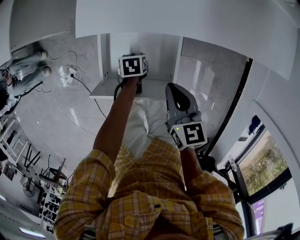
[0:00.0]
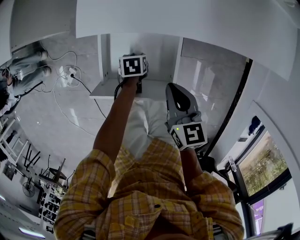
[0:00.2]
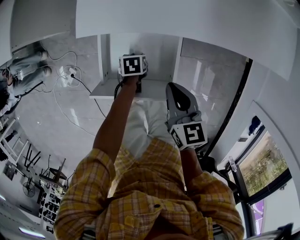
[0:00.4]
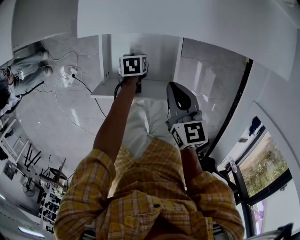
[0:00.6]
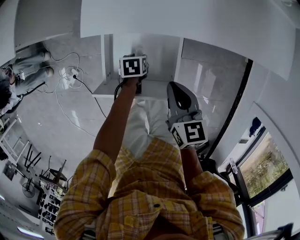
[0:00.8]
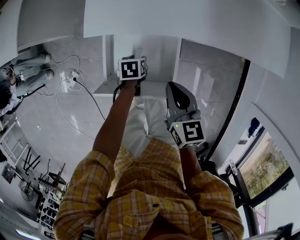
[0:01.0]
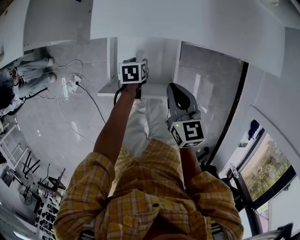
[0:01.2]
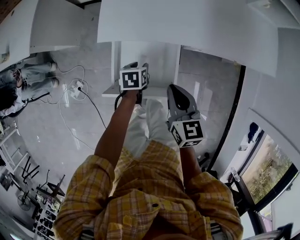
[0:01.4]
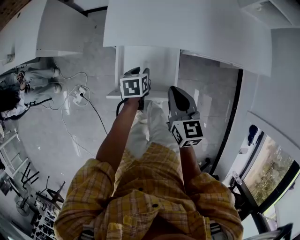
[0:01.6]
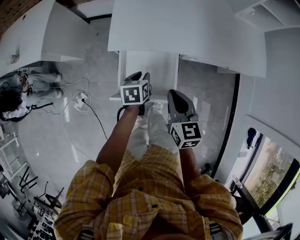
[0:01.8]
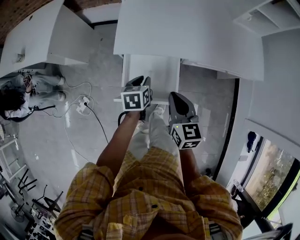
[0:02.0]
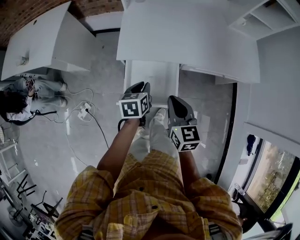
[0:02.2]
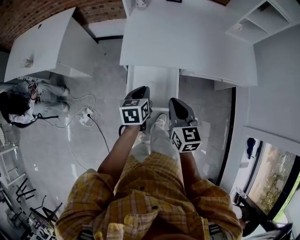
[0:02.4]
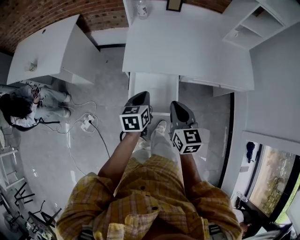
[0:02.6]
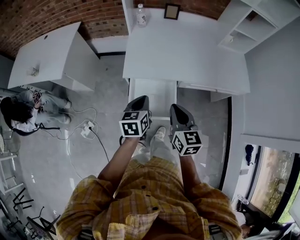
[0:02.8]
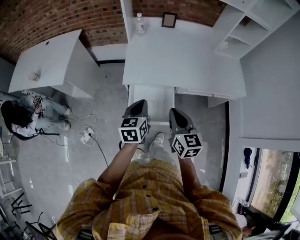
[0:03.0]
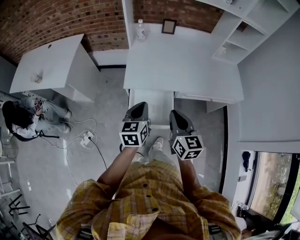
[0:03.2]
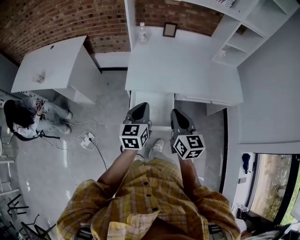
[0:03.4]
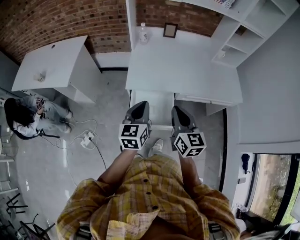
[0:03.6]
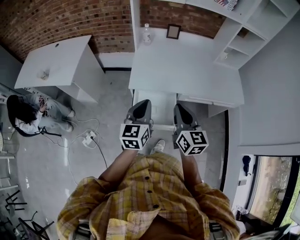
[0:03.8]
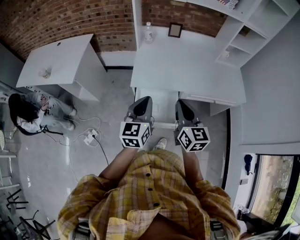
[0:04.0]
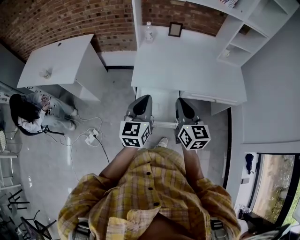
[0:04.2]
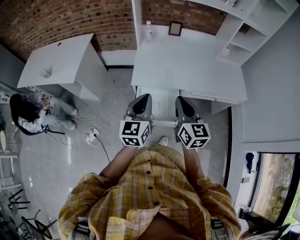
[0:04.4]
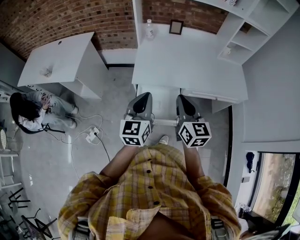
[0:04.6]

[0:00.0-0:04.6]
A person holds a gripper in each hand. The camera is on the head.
0:00.0 to 0:01.6: The left gripper heads upward, covering some 20 cm. Meanwhile the right gripper is displaced upward by some 10 cm.
0:01.6 to 0:03.0: The left gripper goes roughly 25 cm upward, changes its angle by about 30 degrees, and closes up. Meanwhile the right gripper is displaced upward by some 15 cm.
0:03.0 to 0:04.6: The two grippers go about 10 cm upward. The left gripper swivels some 20 degrees.

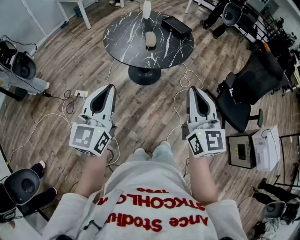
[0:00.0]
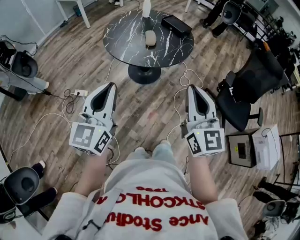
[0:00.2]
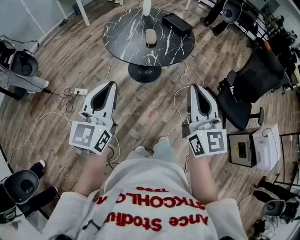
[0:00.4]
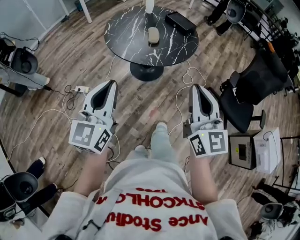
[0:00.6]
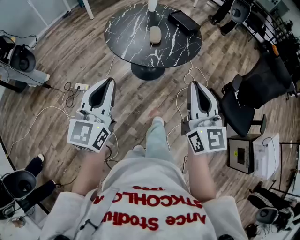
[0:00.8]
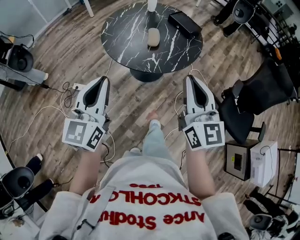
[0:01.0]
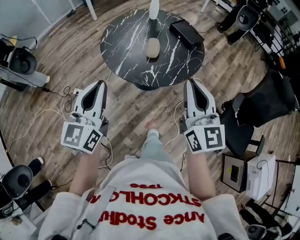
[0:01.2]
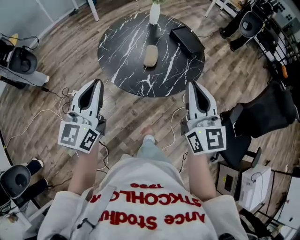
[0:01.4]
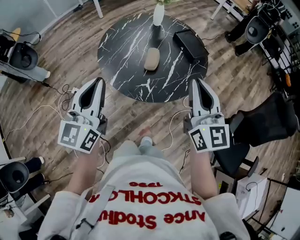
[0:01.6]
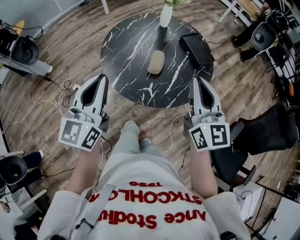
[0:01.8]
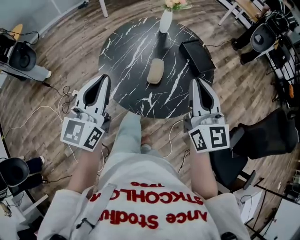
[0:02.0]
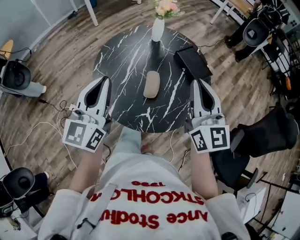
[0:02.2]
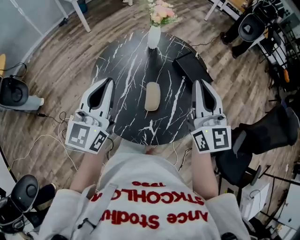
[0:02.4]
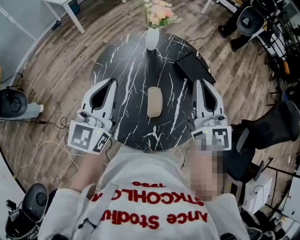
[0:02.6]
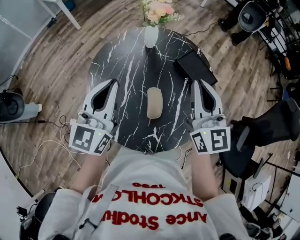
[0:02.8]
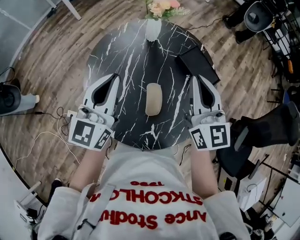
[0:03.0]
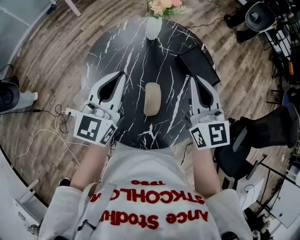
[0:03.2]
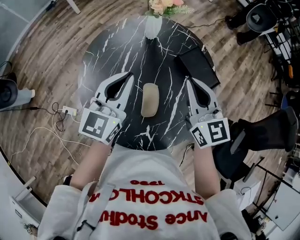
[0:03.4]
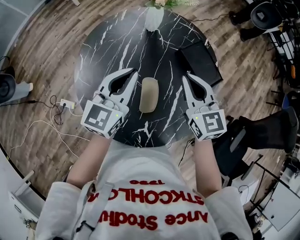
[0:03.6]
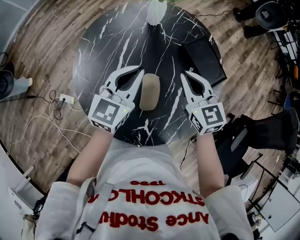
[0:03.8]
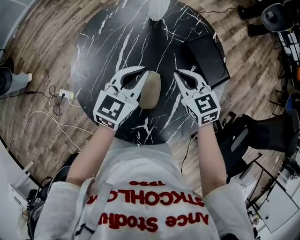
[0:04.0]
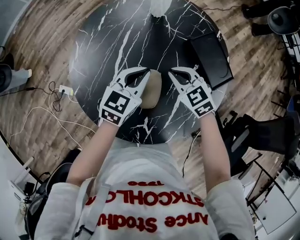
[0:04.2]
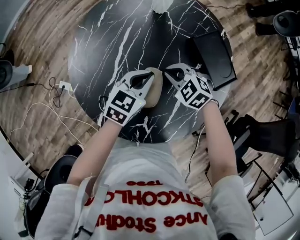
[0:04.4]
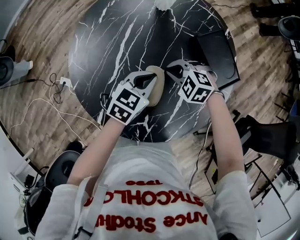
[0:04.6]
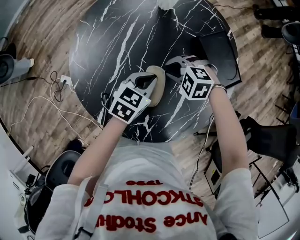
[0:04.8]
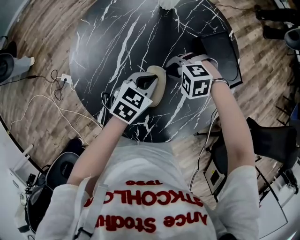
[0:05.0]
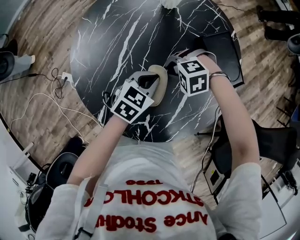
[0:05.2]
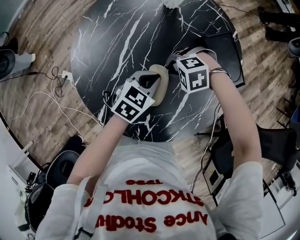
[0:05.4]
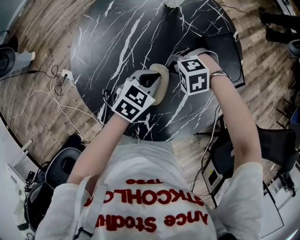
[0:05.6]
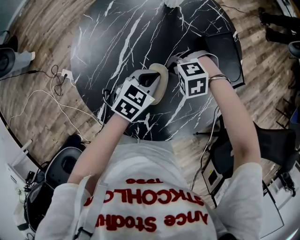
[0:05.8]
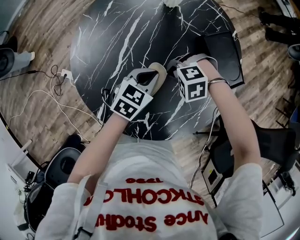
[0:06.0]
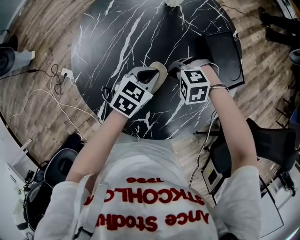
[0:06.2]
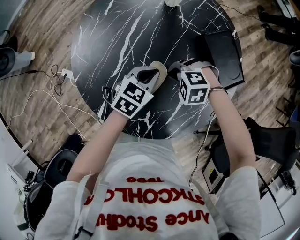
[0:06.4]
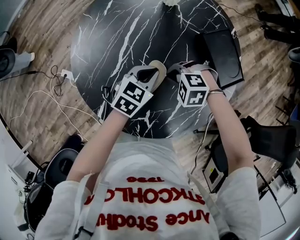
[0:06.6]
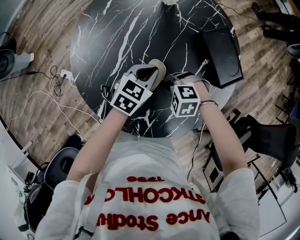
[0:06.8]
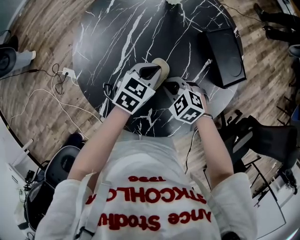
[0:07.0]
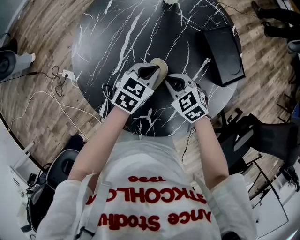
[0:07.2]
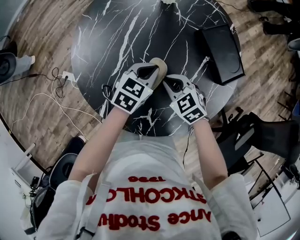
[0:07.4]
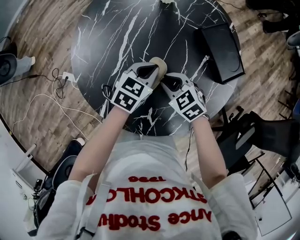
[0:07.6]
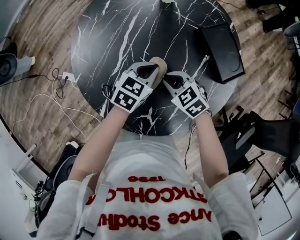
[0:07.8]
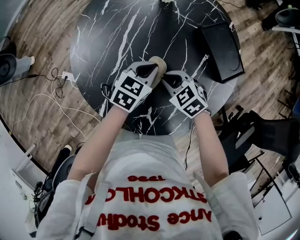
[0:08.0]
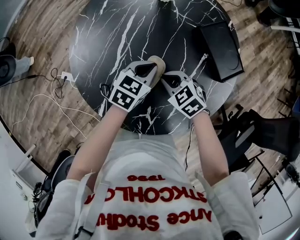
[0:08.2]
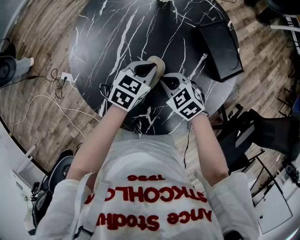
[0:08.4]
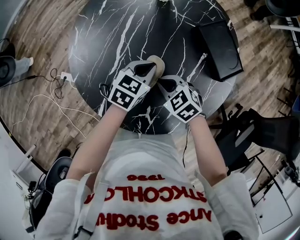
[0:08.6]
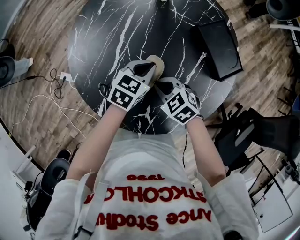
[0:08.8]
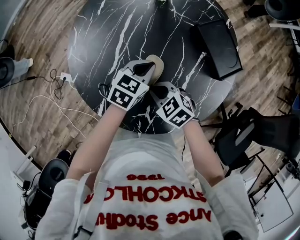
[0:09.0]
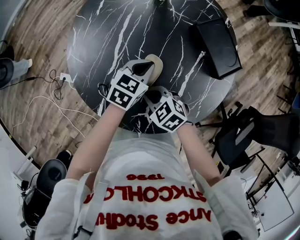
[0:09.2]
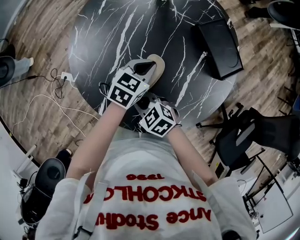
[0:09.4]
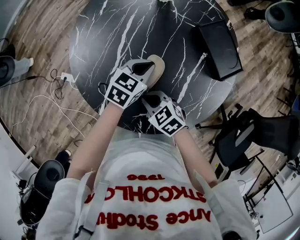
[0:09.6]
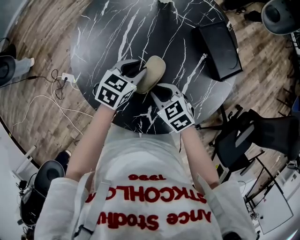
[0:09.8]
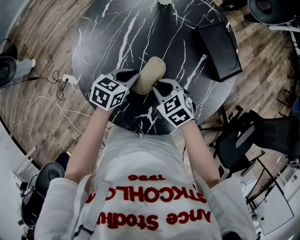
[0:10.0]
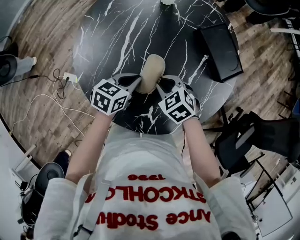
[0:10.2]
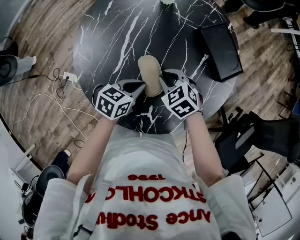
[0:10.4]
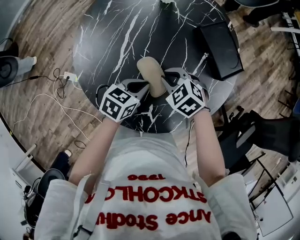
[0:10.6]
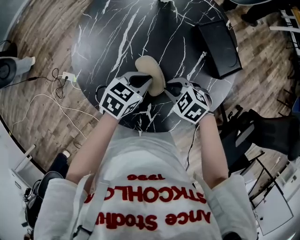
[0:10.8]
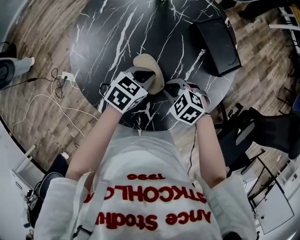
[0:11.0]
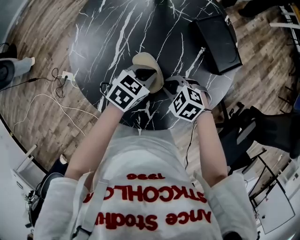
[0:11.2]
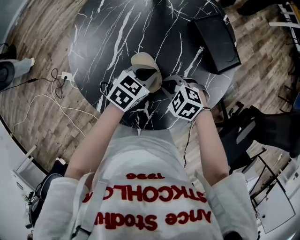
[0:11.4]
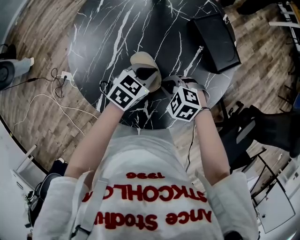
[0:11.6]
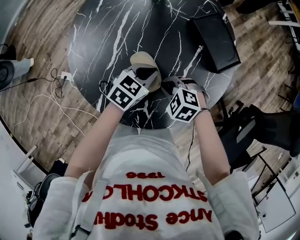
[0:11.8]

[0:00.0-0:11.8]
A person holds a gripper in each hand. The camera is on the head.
0:00.0 to 0:01.4: Both grippers travel together forward, roughly 25 cm.
0:01.4 to 0:03.0: The two grippers go about 40 cm forward.
0:03.0 to 0:04.4: The right gripper goes roughly 35 cm downward, and angles its fingers downward, by about 50 degrees. Meanwhile the left gripper shifts approximately 30 cm downward and to the right, and swivels some 30 degrees.
0:04.4 to 0:06.0: The right gripper swivels about 50 degrees.
0:06.0 to 0:07.4: The right gripper twists some 50 degrees clockwise, seen from behind.
0:07.4 to 0:08.8: The grippers make only small movements.
0:08.8 to 0:10.4: The left gripper ends up approximately 10 cm from where it was, and opens and closes again.
0:10.4 to 0:11.8: The left gripper shifts by some 10 cm. The right gripper shifts by some 10 cm, and rotates approximately 20 degrees.

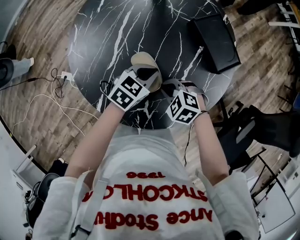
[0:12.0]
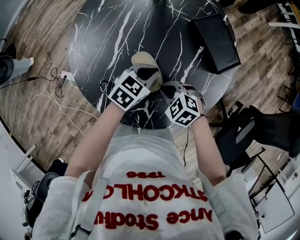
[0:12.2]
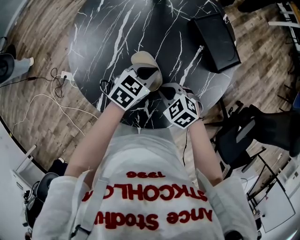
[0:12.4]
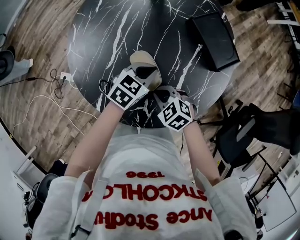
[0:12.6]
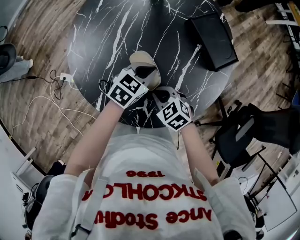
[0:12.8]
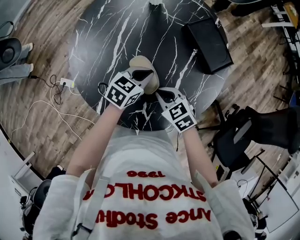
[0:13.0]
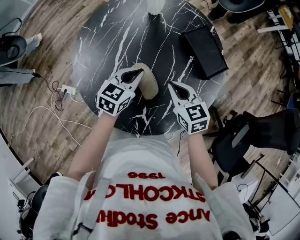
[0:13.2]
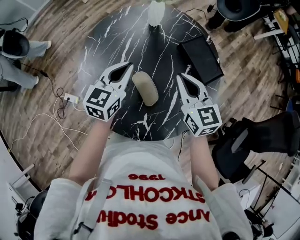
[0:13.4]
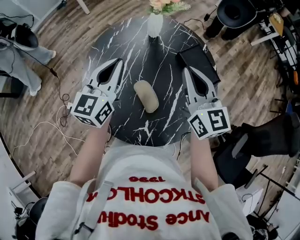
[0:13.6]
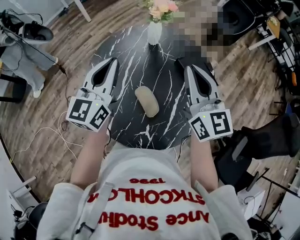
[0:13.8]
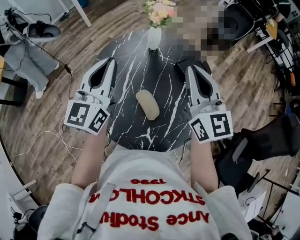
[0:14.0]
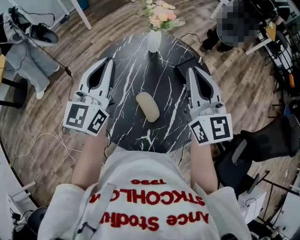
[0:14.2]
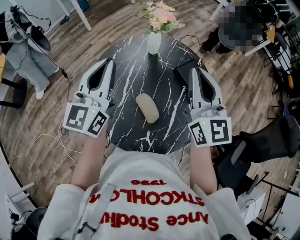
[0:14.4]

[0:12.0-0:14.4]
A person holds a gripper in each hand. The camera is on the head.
0:12.0 to 0:13.2: The left gripper moves upward, some 5 cm. Meanwhile the right gripper moves upward, about 10 cm, and swivels about 50 degrees.
0:13.2 to 0:14.4: The two grippers go roughly 30 cm upward. The right gripper angles its fingers upward, by roughly 40 degrees, while the left gripper points its fingers about 40 degrees further upward.

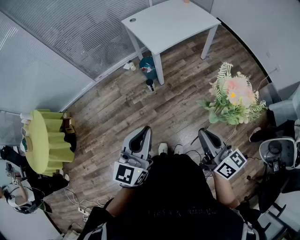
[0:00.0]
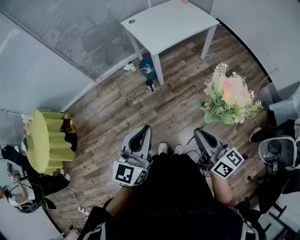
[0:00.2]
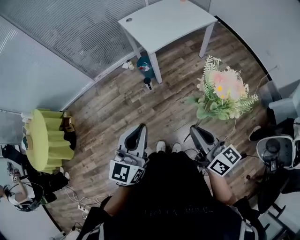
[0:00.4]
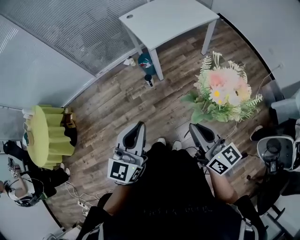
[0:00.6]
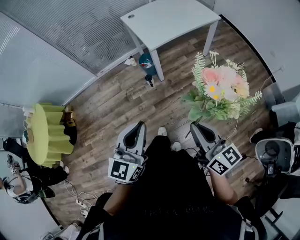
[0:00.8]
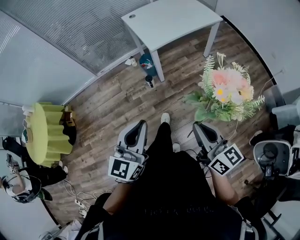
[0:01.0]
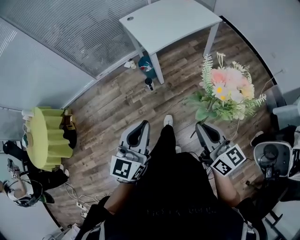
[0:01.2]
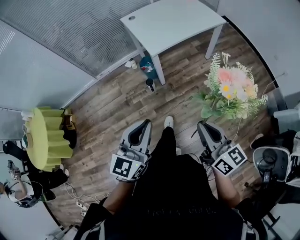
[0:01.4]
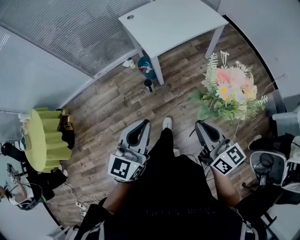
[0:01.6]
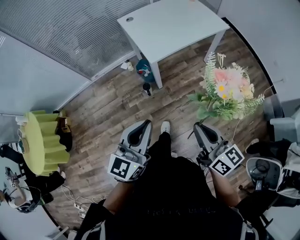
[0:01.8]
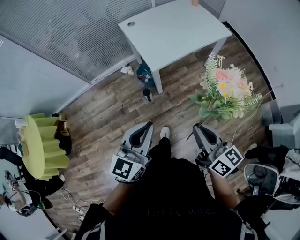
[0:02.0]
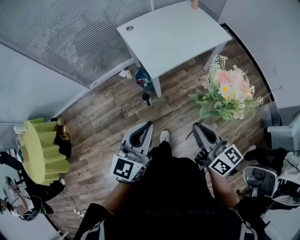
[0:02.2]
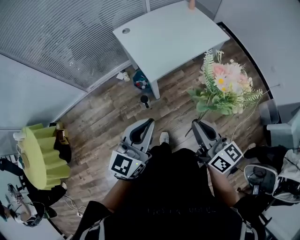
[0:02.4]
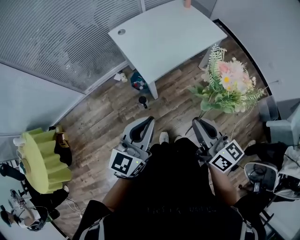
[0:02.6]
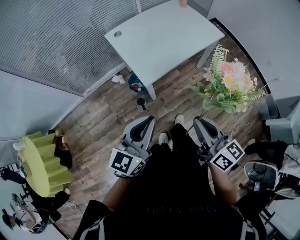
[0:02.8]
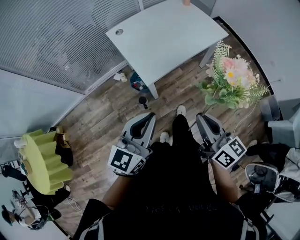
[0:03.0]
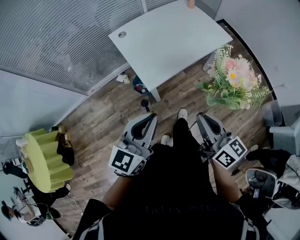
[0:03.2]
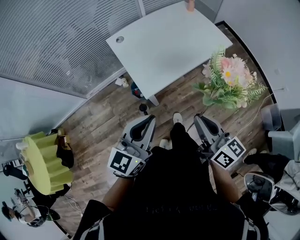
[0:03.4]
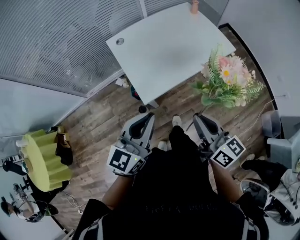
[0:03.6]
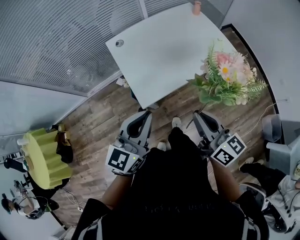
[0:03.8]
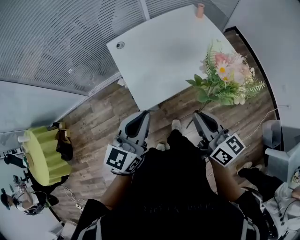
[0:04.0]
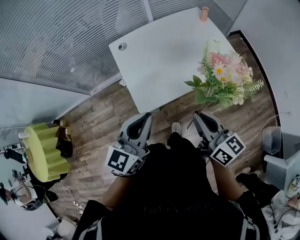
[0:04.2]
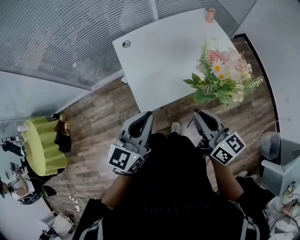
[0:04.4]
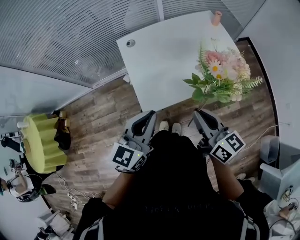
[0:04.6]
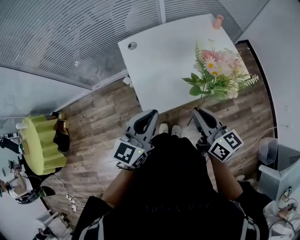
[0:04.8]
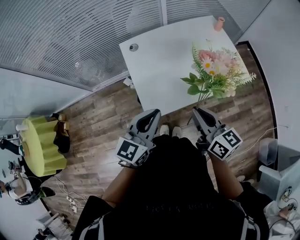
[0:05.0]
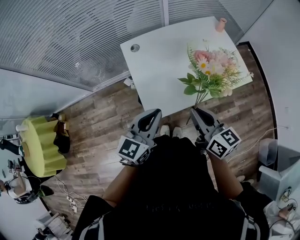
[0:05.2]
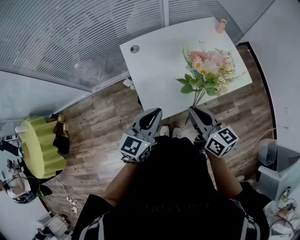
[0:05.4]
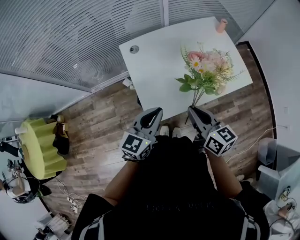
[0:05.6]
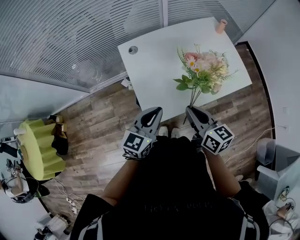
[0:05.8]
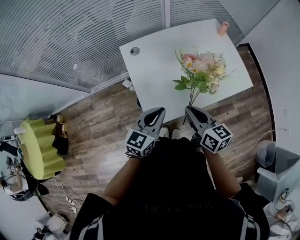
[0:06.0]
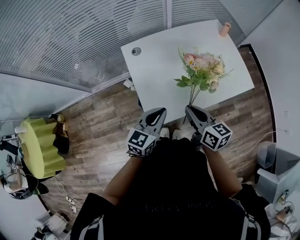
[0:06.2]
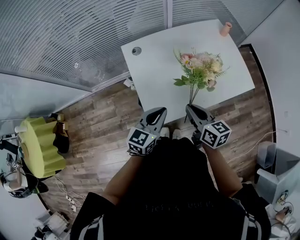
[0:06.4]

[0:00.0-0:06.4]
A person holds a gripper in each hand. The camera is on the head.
0:00.0 to 0:01.6: Both grippers move forward, approximately 10 cm.
0:01.6 to 0:03.2: The two grippers go about 25 cm forward.
0:03.2 to 0:04.8: The two grippers go roughly 20 cm forward.
0:04.8 to 0:06.4: The grippers both shift downward and forward by approximately 10 cm.
